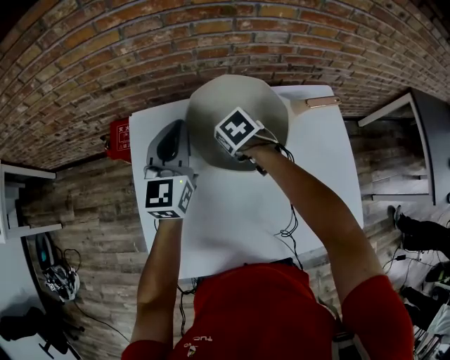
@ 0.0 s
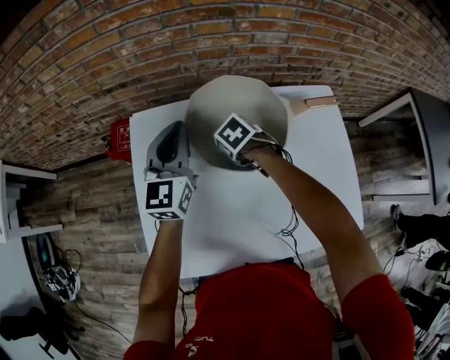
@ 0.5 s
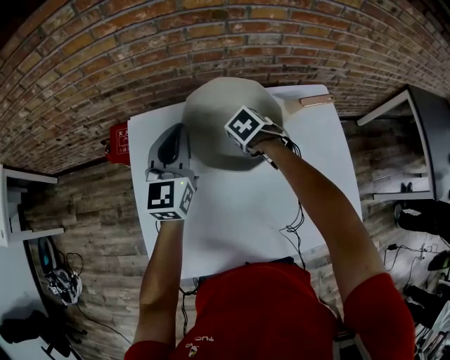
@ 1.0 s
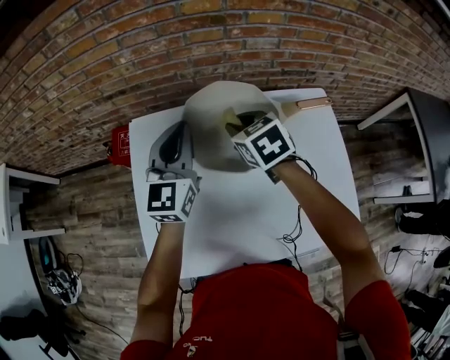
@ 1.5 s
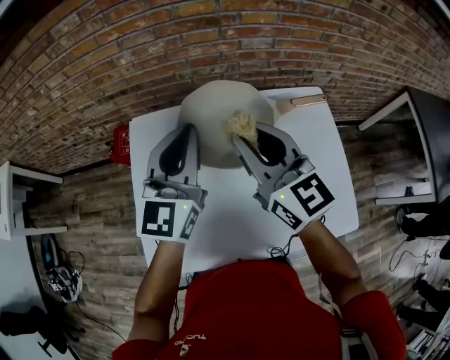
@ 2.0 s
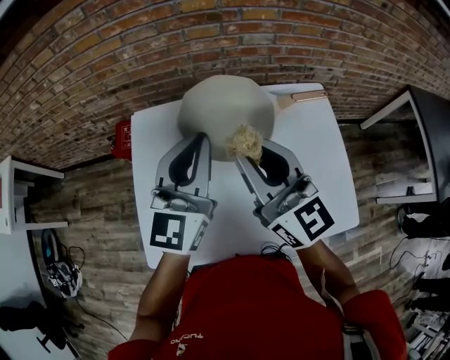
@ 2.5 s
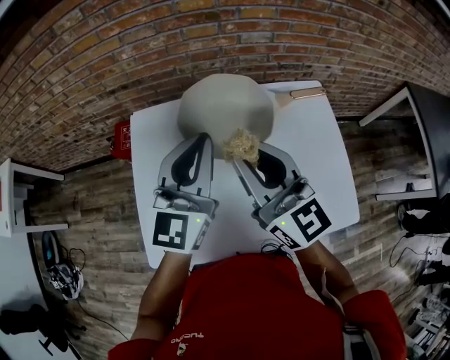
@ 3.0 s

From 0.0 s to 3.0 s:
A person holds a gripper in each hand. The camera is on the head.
From 0.0 s to 1.5 s: The right gripper moves upward, about 10 cm, and rotates approximately 30 degrees, while the left gripper shifts by approximately 5 cm.
From 1.5 s to 3.0 s: The left gripper moves backward, upward and to the right, approximately 15 cm; the right gripper moves backward and upward, approximately 20 cm, and tips its fingers upward by about 50 degrees.

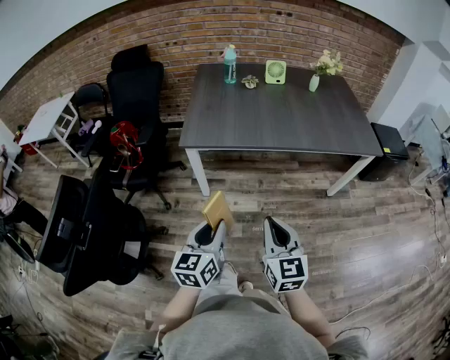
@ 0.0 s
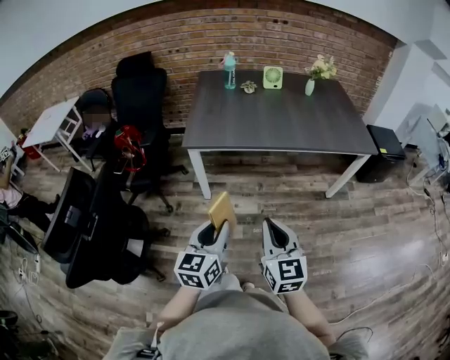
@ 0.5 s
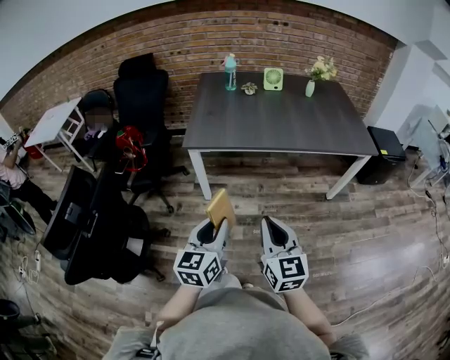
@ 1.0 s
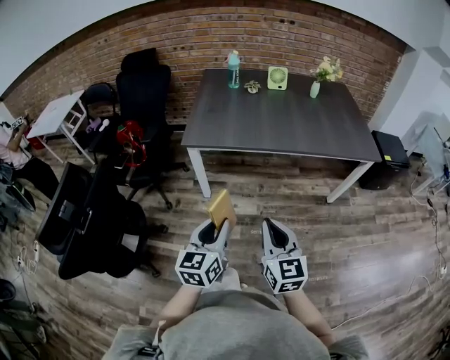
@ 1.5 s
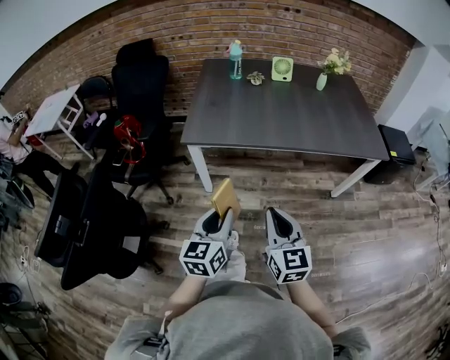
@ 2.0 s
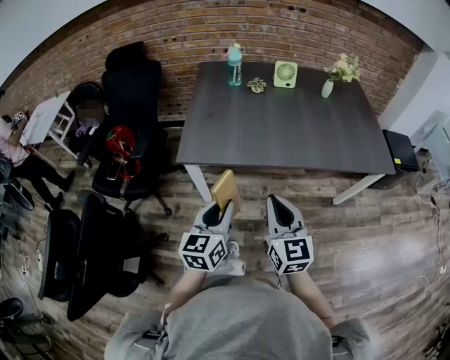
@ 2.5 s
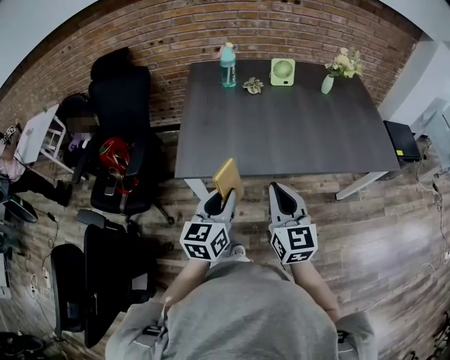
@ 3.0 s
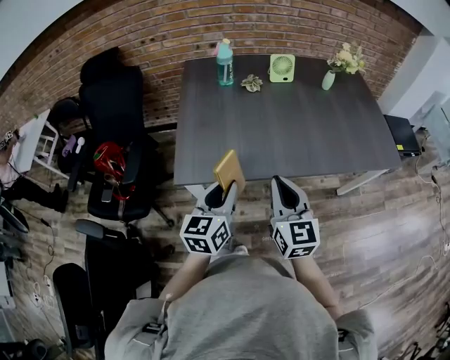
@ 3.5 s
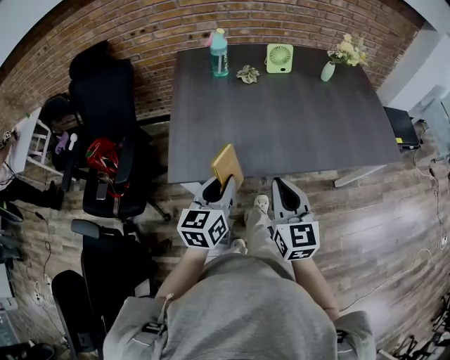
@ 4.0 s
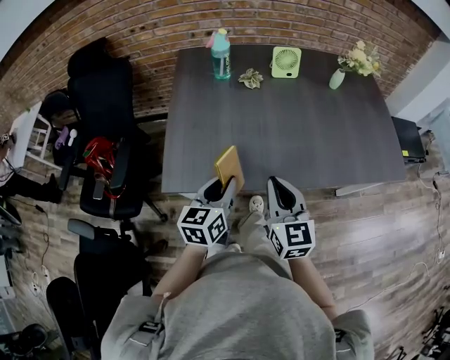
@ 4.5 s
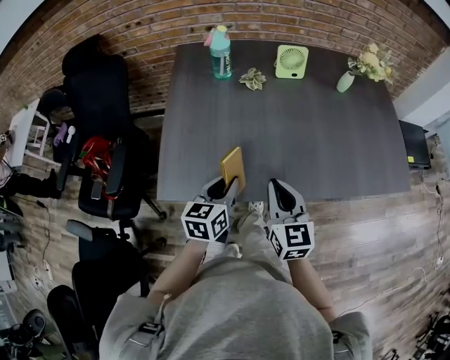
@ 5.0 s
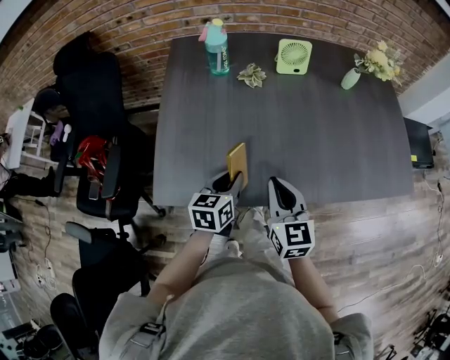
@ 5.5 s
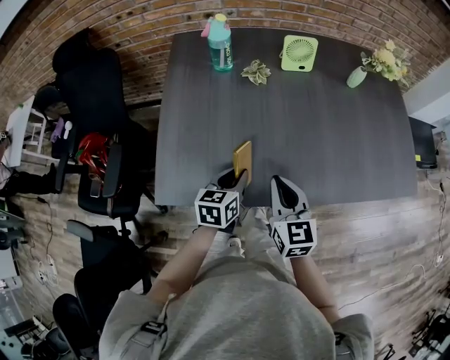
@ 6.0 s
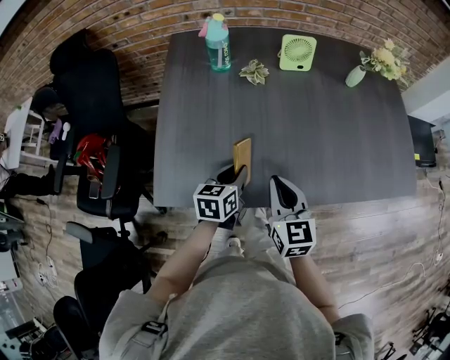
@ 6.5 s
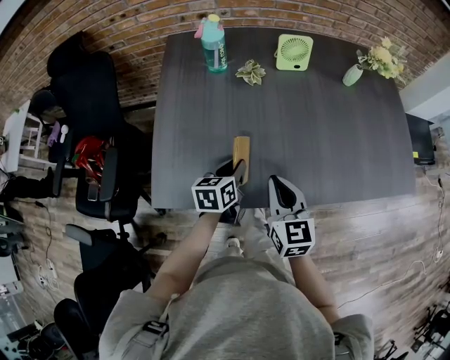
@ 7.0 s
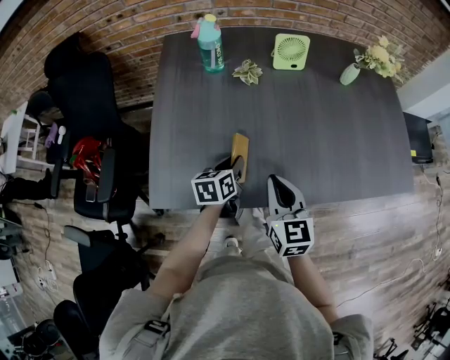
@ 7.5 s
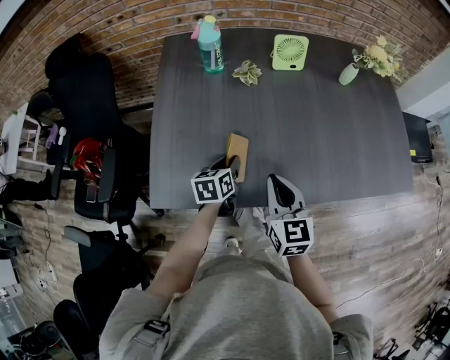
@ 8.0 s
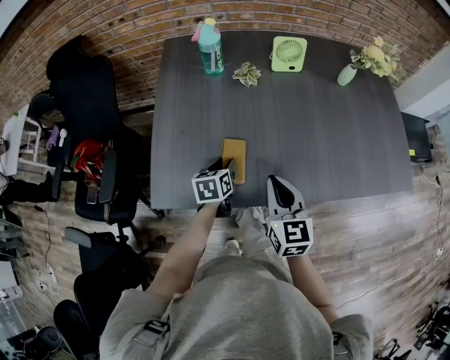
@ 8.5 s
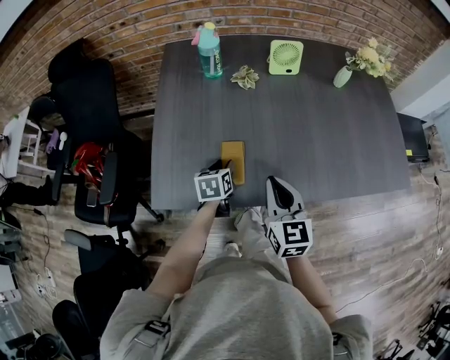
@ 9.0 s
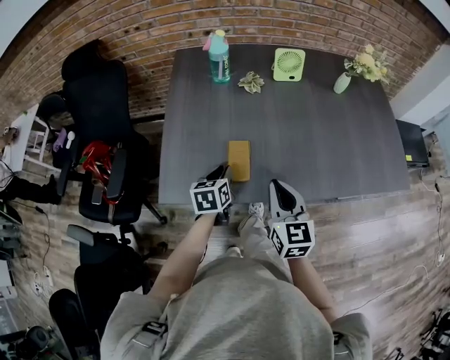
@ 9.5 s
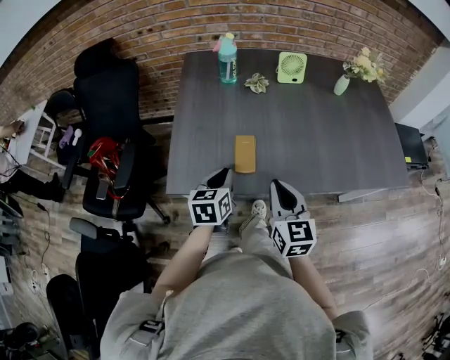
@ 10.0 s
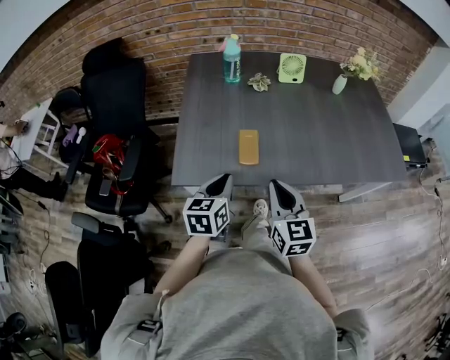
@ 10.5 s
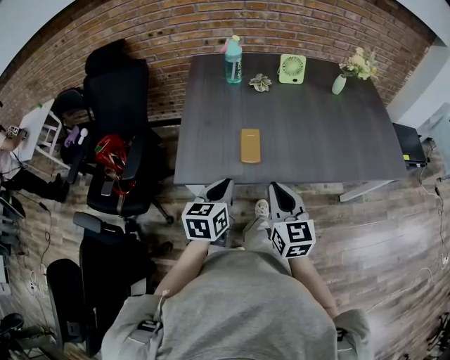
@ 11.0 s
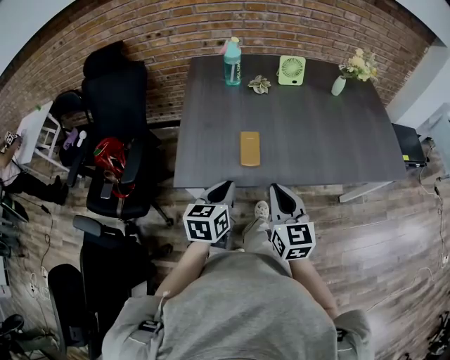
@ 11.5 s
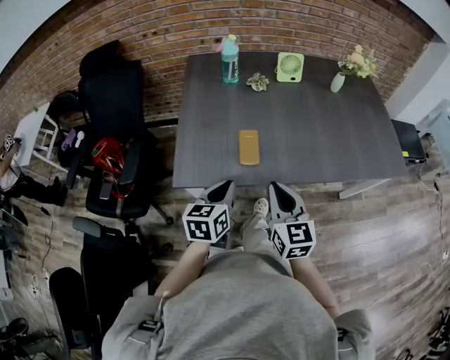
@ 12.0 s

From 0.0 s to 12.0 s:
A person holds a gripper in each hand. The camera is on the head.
From 0.0 s to 2.0 s: The left gripper changes place by about 5 cm.
From 2.0 s to 4.0 s: The two grippers go some 30 cm forward.
From 4.0 s to 6.0 s: Both grippers travel together forward and downward, roughly 20 cm.
From 6.0 s to 8.0 s: The left gripper changes place by some 5 cm.
From 8.0 s to 10.0 s: The left gripper travels backward and upward by about 15 cm; the right gripper travels backward by roughly 10 cm.
From 10.0 s to 12.0 s: The right gripper moves backward, roughly 5 cm. Meanwhile the left gripper moves backward, about 10 cm.

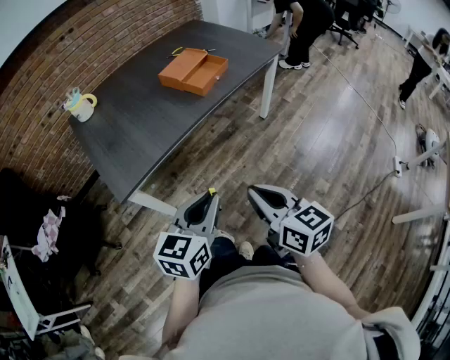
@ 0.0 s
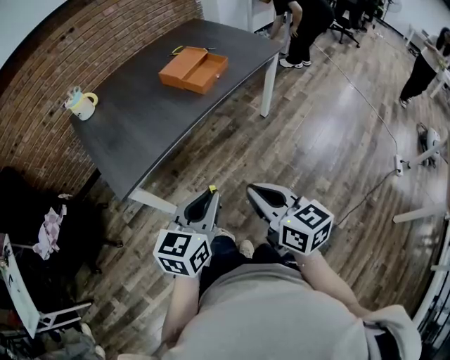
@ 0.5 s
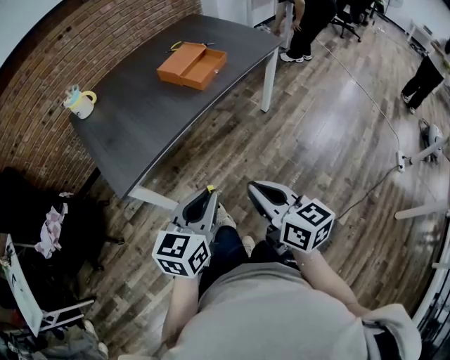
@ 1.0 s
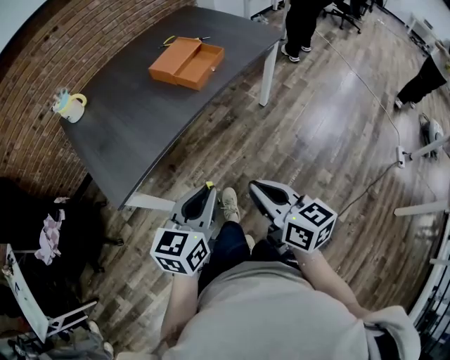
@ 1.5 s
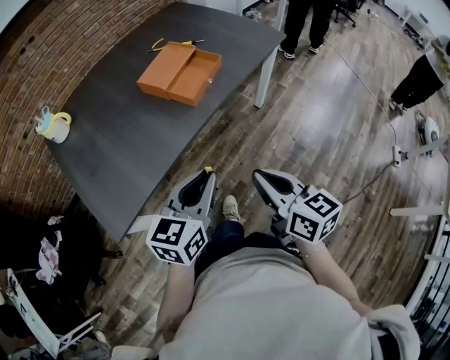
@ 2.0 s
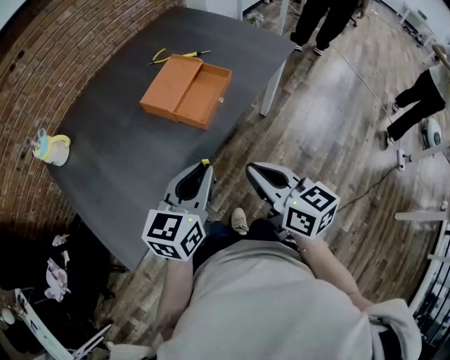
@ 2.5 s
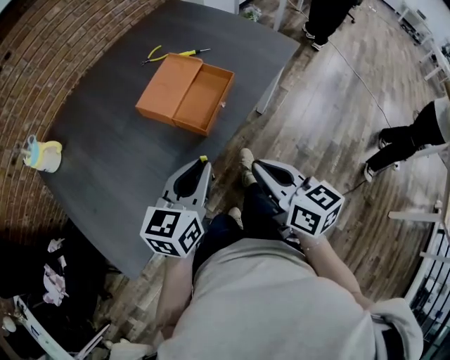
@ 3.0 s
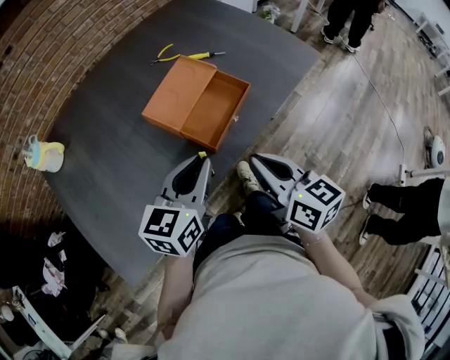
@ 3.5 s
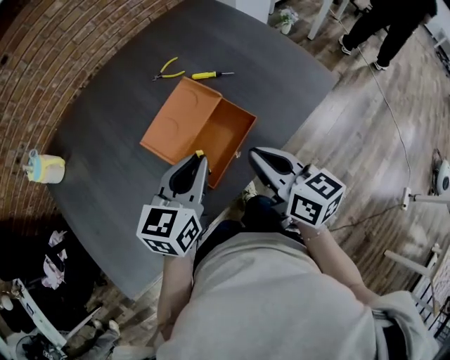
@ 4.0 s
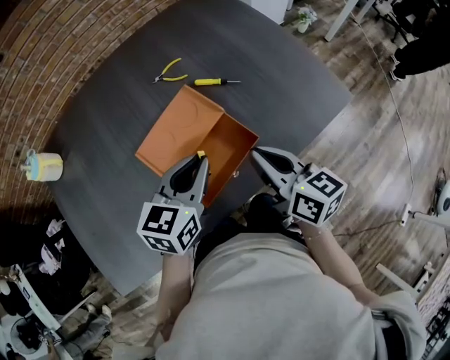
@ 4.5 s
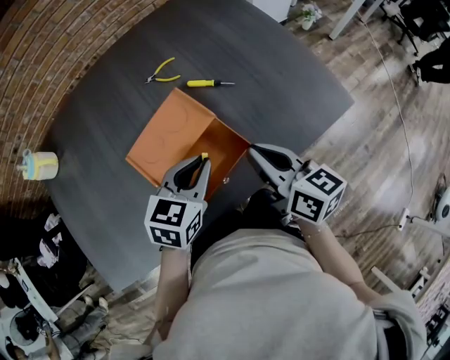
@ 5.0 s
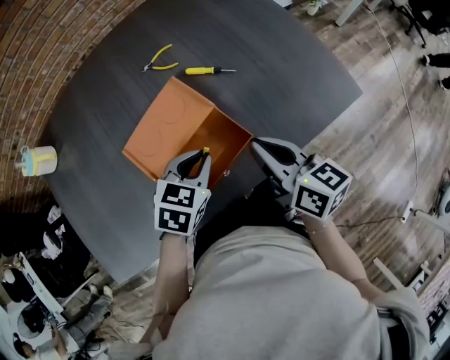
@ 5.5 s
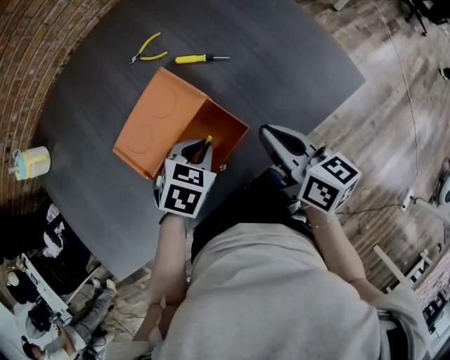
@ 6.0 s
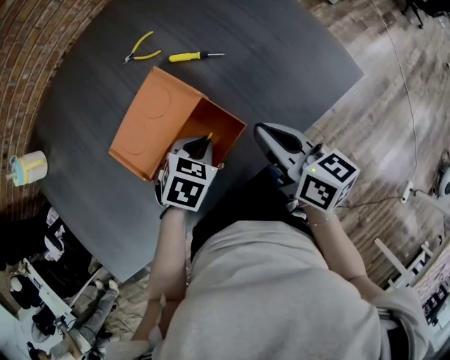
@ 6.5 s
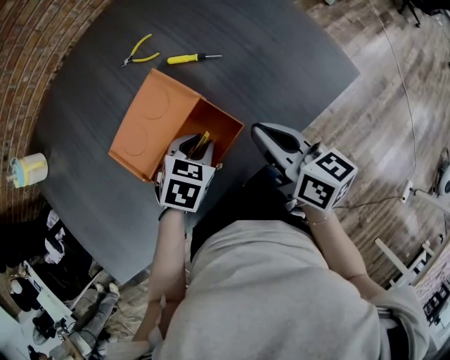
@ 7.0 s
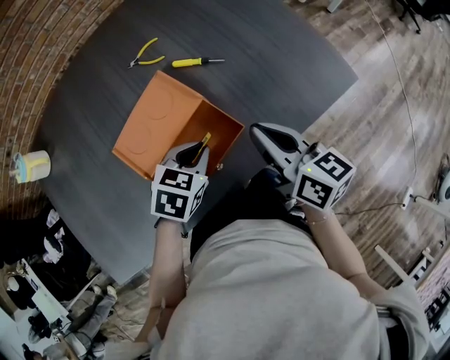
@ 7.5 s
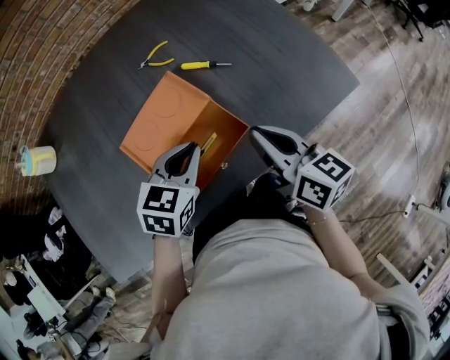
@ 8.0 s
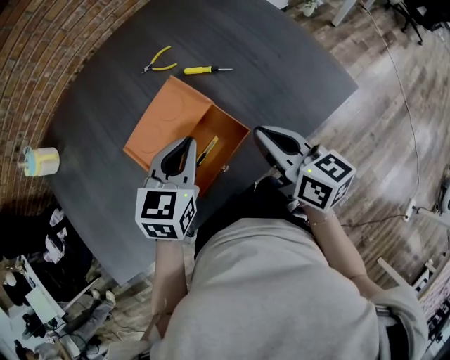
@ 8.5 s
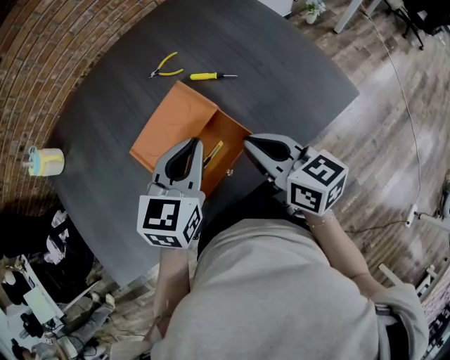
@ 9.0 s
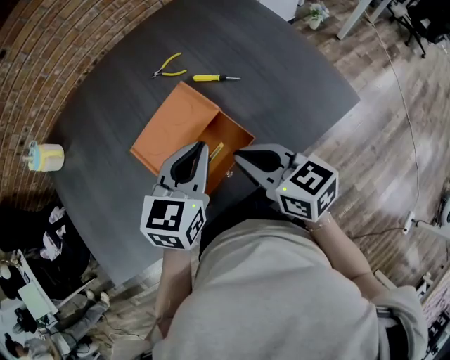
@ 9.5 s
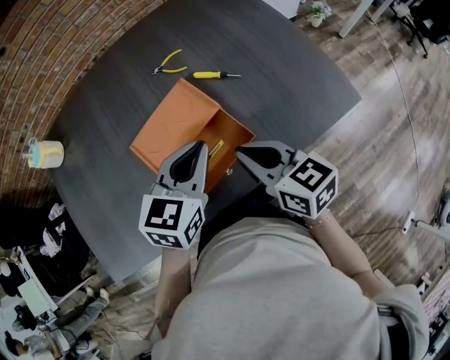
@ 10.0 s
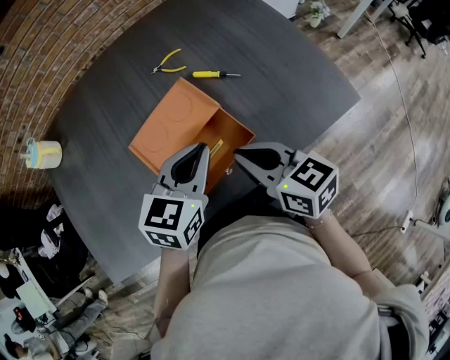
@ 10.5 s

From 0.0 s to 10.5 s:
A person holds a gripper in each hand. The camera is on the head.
From 0.0 s to 2.0 s: Both grippers travel together forward, some 20 cm.
From 2.0 s to 4.0 s: Both grippers move forward, roughly 35 cm.
From 4.0 s to 6.5 s: The left gripper is displaced downward, to the right and forward by some 20 cm, and angles its fingers downward, by approximately 40 degrees. Meanwhile the right gripper heads forward, to the right and downward, covering some 15 cm.
From 6.5 s to 8.5 s: The left gripper goes approximately 15 cm upward, and rotates roughly 30 degrees.
From 8.5 s to 10.5 s: The right gripper heads to the left, covering approximately 5 cm, and rotates about 20 degrees.

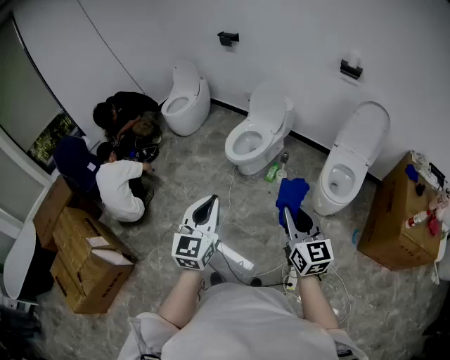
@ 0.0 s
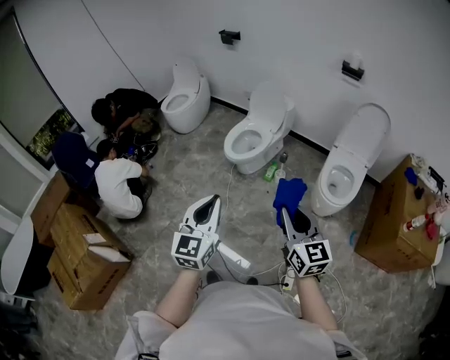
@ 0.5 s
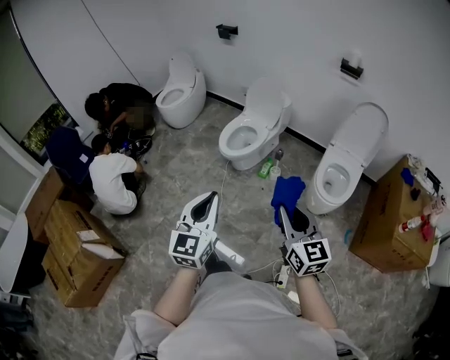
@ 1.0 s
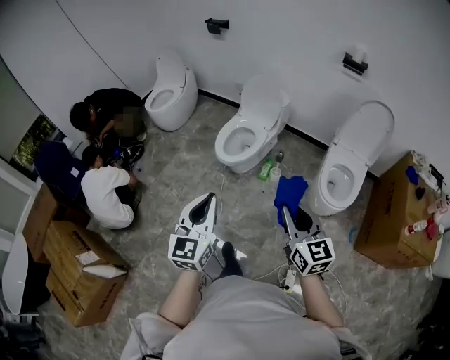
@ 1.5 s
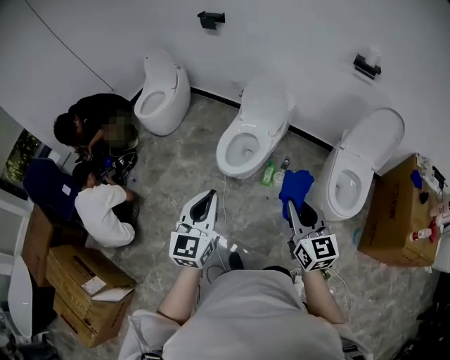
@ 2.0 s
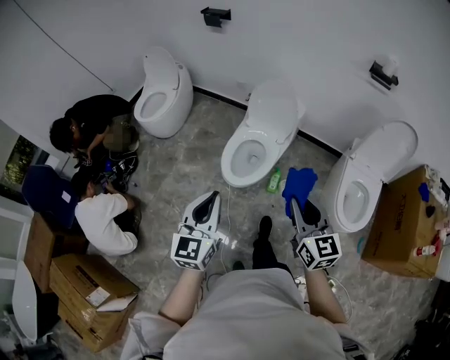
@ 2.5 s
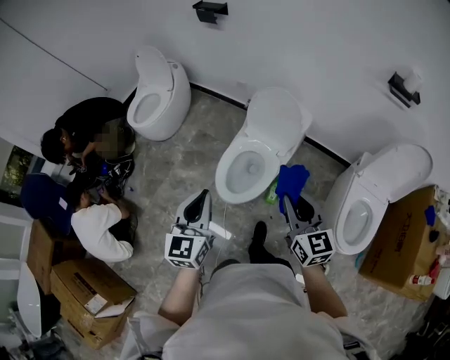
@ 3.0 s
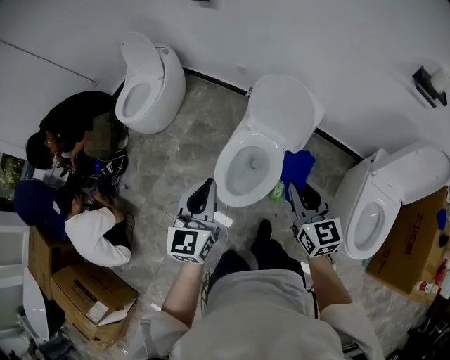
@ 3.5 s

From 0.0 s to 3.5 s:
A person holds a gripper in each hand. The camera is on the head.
From 0.0 s to 2.0 s: The two grippers go roughly 30 cm forward.
From 2.0 s to 3.5 s: Both grippers travel together forward, some 40 cm.
